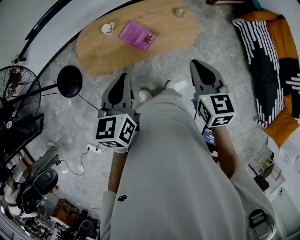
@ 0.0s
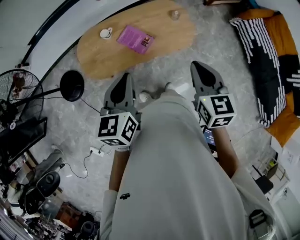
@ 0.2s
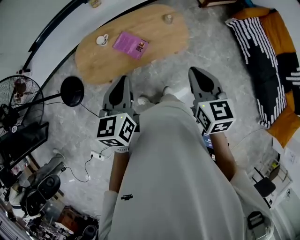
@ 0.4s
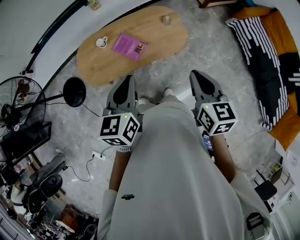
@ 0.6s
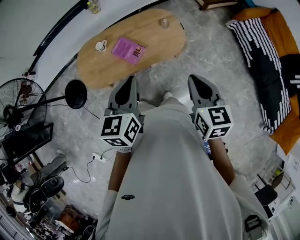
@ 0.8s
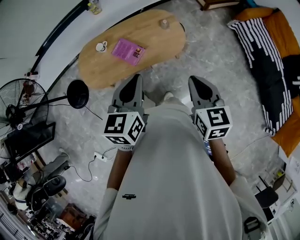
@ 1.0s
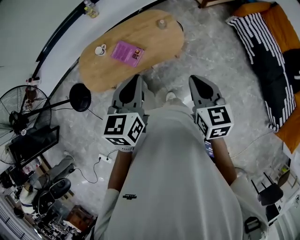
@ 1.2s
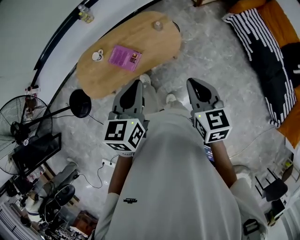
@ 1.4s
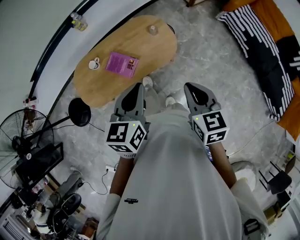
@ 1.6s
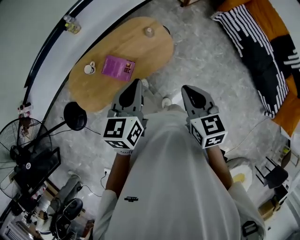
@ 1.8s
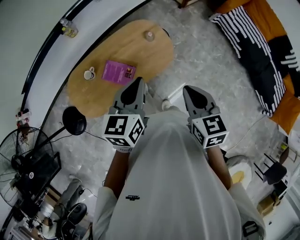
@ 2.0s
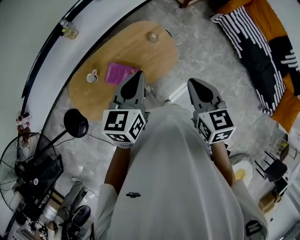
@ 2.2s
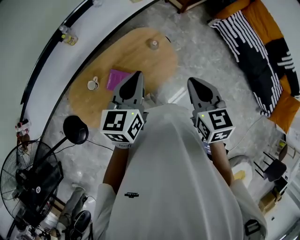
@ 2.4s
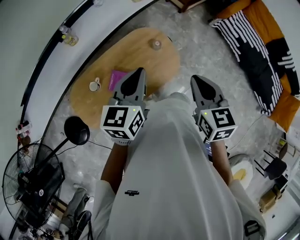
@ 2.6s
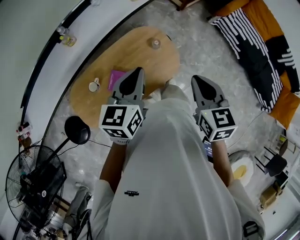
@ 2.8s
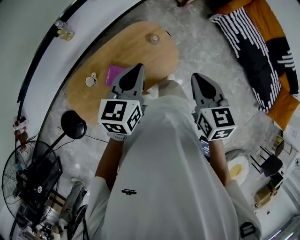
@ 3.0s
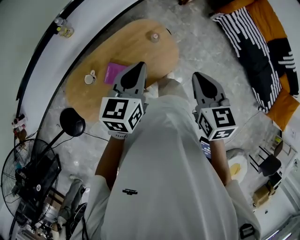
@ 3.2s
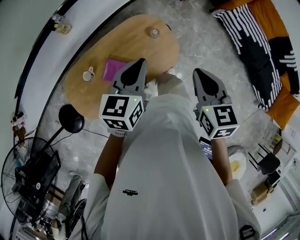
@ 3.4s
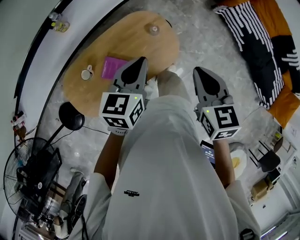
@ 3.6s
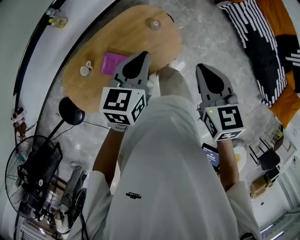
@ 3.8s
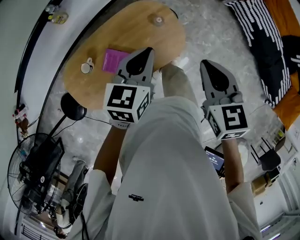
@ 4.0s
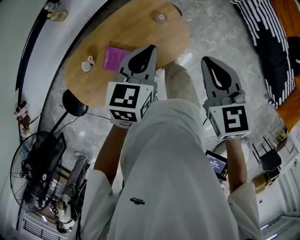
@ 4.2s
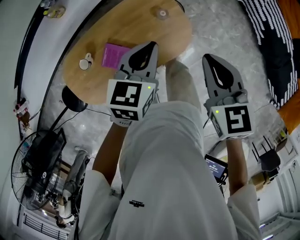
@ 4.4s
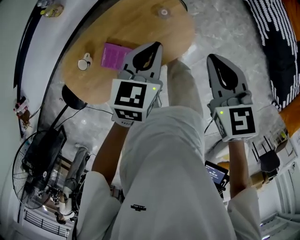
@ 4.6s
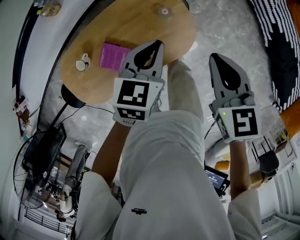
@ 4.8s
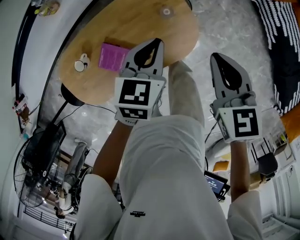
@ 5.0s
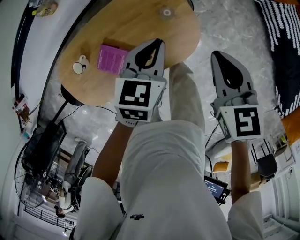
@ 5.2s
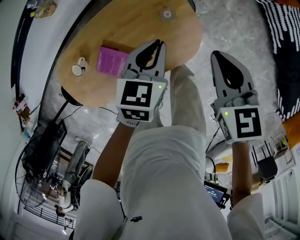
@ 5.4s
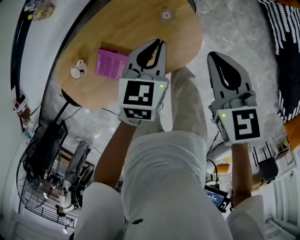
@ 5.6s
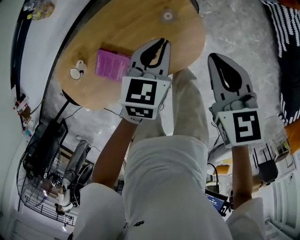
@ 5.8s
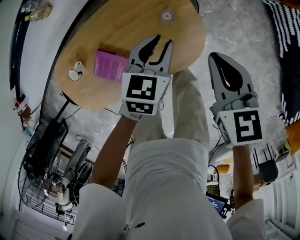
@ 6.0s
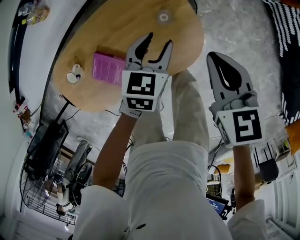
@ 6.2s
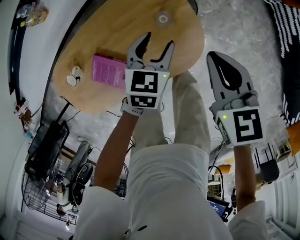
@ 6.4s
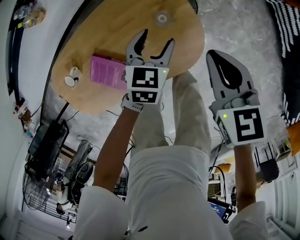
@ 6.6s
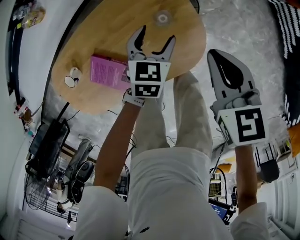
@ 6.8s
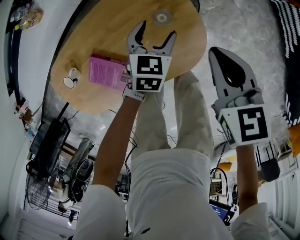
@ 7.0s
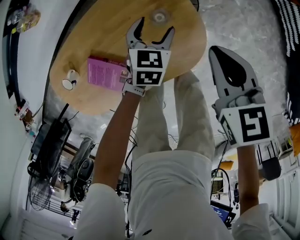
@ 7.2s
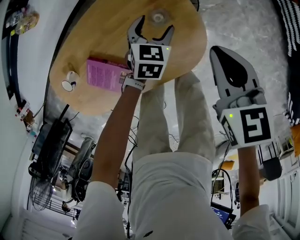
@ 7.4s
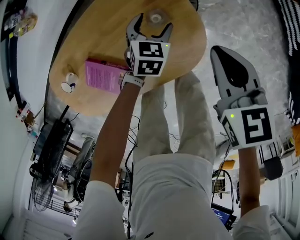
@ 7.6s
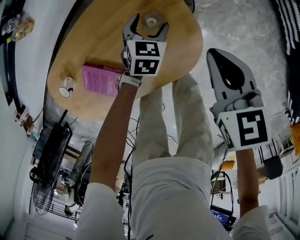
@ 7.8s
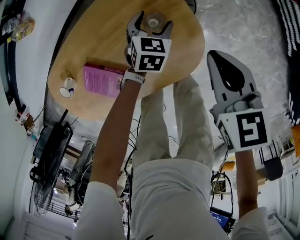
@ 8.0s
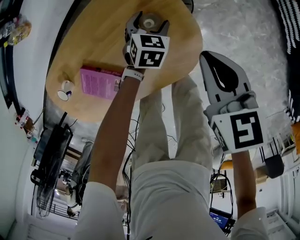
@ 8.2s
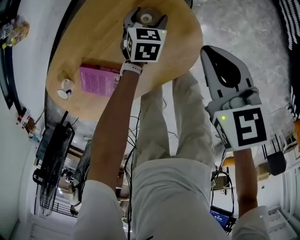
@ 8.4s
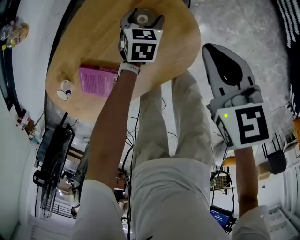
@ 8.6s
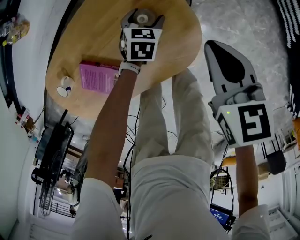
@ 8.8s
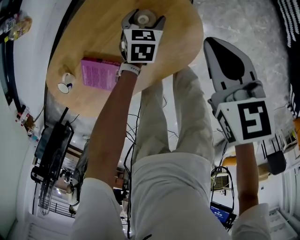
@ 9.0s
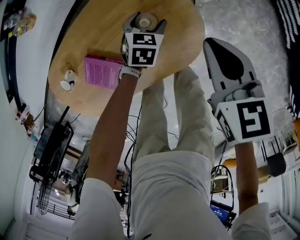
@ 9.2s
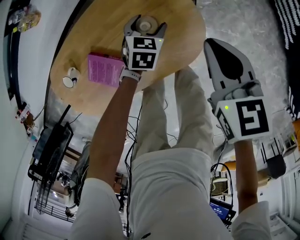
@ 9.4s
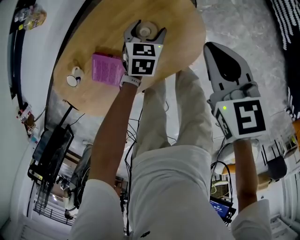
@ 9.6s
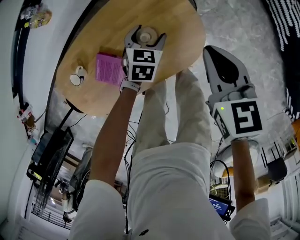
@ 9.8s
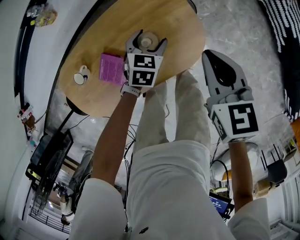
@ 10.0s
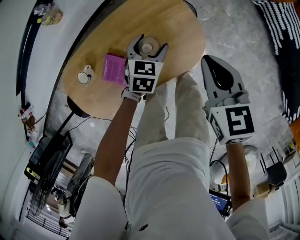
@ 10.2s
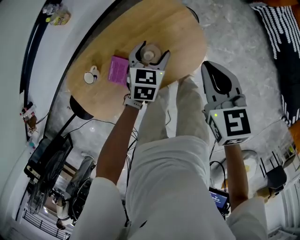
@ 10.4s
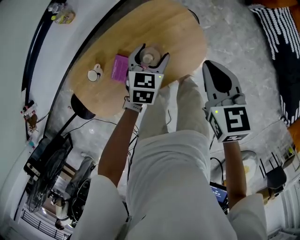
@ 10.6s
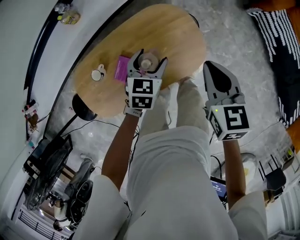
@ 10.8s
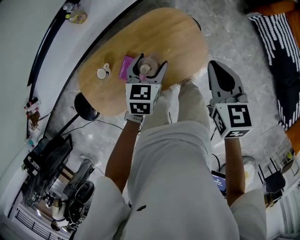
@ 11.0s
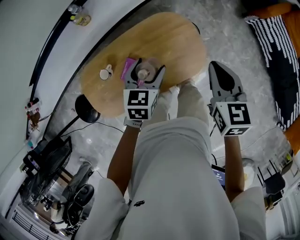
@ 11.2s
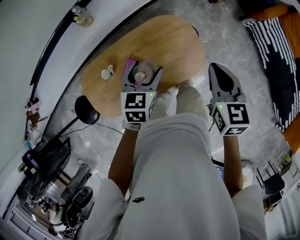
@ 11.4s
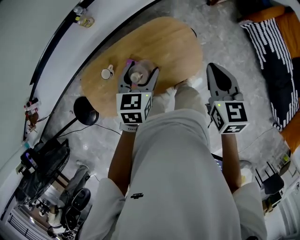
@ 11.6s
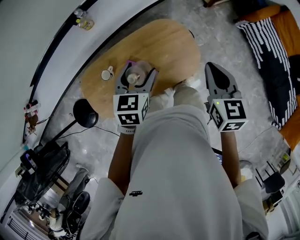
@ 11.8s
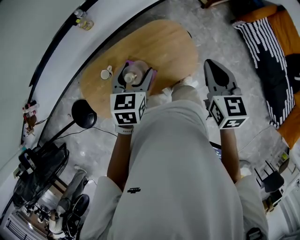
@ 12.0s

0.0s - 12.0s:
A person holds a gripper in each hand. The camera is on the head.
0.0s - 1.6s: The grippers both shift to the right by roughly 20 cm.
1.6s - 3.0s: The grippers both shift forward and to the left by some 20 cm.
3.0s - 4.4s: The right gripper travels forward and downward by roughly 10 cm. Meanwhile the left gripper moves downward, forward and to the right, some 15 cm.
4.4s - 6.0s: The right gripper travels downward and forward by roughly 20 cm, while the left gripper moves downward, approximately 20 cm.
6.0s - 7.6s: The right gripper moves downward, about 10 cm. The left gripper goes about 20 cm downward, and opens up.
7.6s - 9.0s: The grippers move only a little.
9.0s - 10.4s: The left gripper shifts about 25 cm upward and backward; the right gripper is displaced upward, backward and to the left by roughly 20 cm.
10.4s - 12.0s: The left gripper shifts approximately 25 cm upward and to the left; the right gripper travels upward by approximately 15 cm.

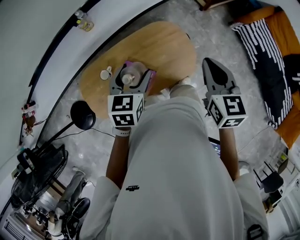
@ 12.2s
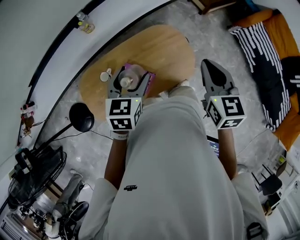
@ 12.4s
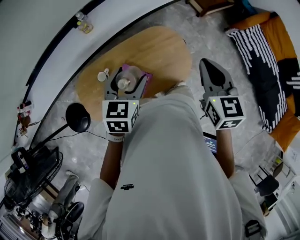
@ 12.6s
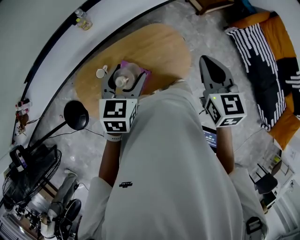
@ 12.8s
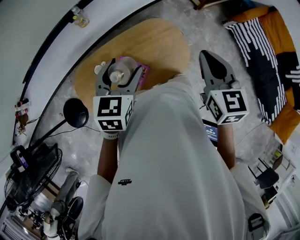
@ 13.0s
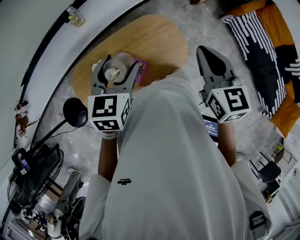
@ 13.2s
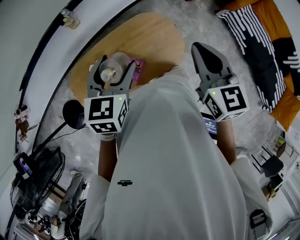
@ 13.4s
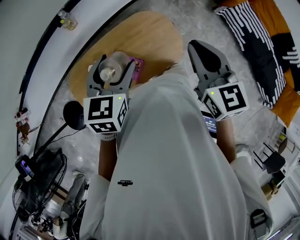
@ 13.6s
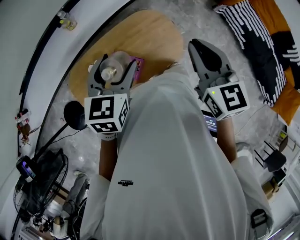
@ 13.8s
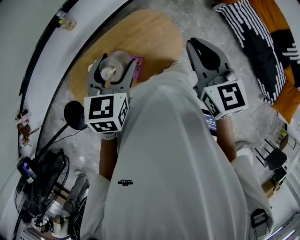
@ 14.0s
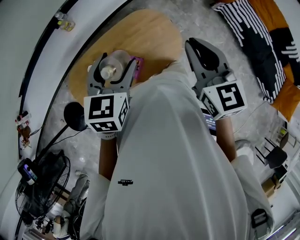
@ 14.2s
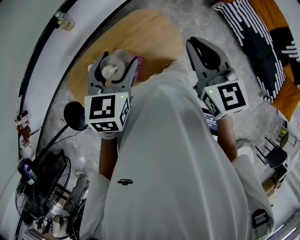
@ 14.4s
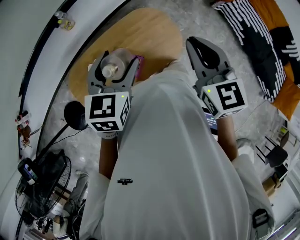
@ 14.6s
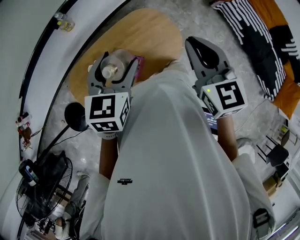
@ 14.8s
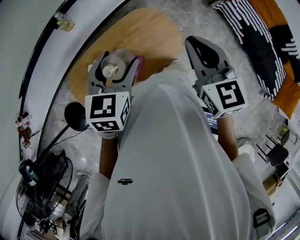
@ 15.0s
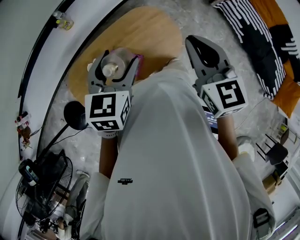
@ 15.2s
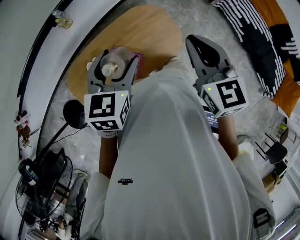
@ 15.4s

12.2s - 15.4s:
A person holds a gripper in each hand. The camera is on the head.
12.2s - 13.8s: Both grippers travel together upward, about 5 cm.
13.8s - 15.4s: The grippers make only small movements.

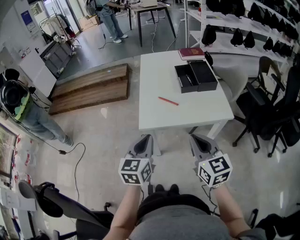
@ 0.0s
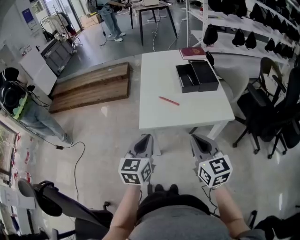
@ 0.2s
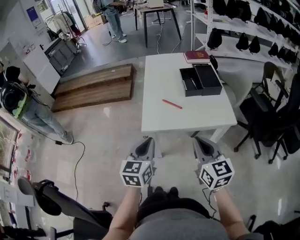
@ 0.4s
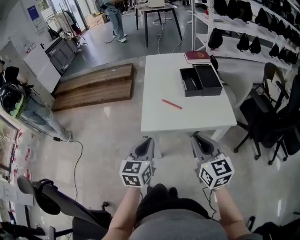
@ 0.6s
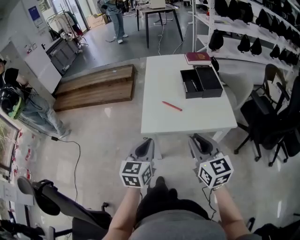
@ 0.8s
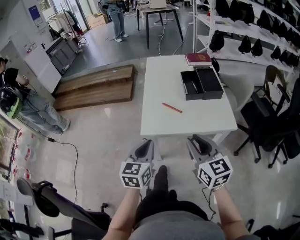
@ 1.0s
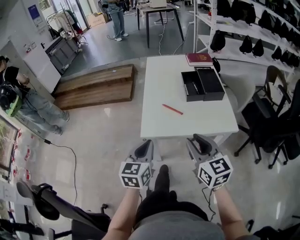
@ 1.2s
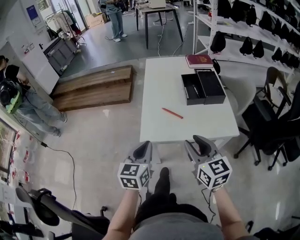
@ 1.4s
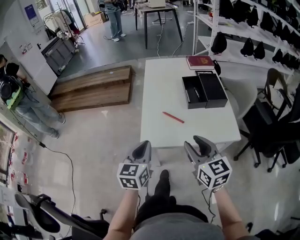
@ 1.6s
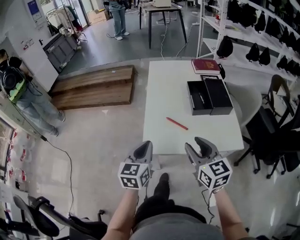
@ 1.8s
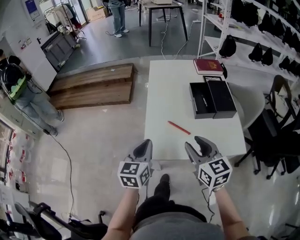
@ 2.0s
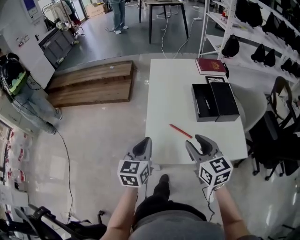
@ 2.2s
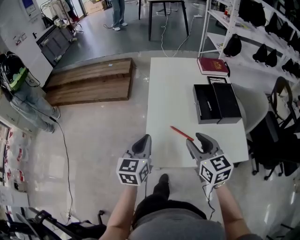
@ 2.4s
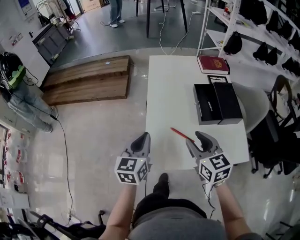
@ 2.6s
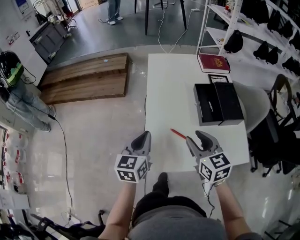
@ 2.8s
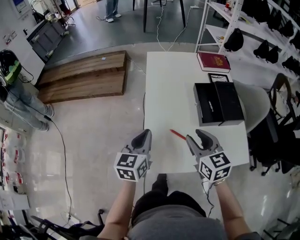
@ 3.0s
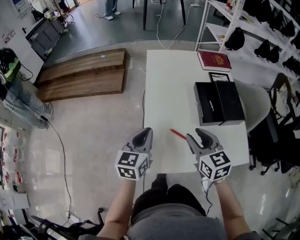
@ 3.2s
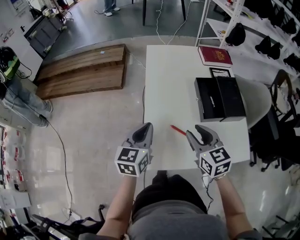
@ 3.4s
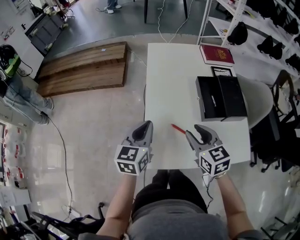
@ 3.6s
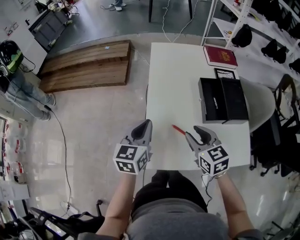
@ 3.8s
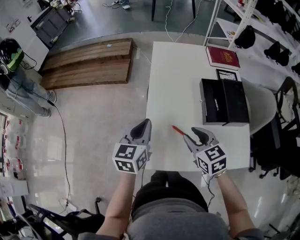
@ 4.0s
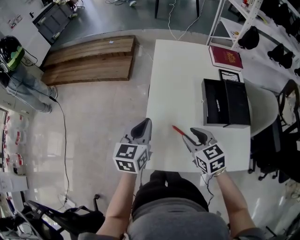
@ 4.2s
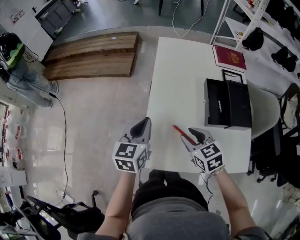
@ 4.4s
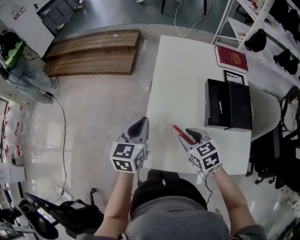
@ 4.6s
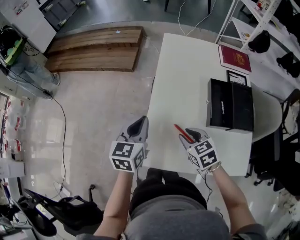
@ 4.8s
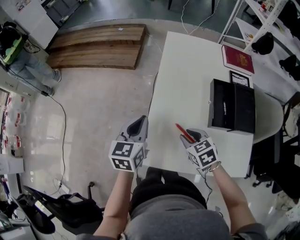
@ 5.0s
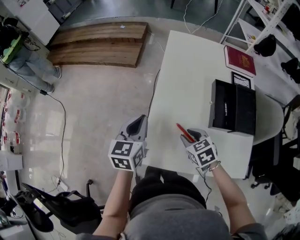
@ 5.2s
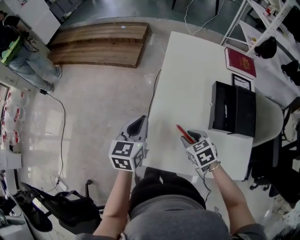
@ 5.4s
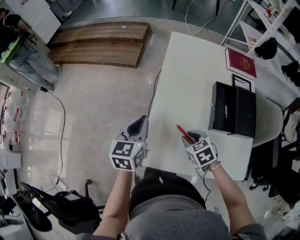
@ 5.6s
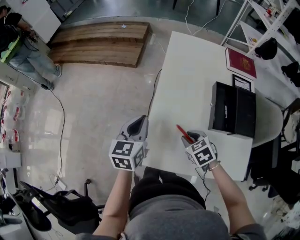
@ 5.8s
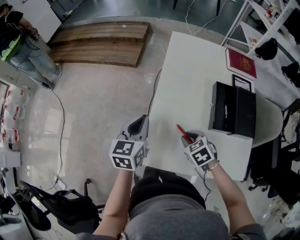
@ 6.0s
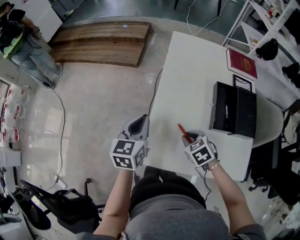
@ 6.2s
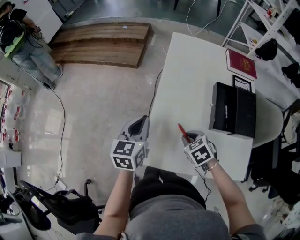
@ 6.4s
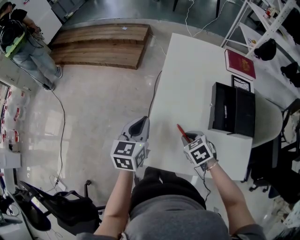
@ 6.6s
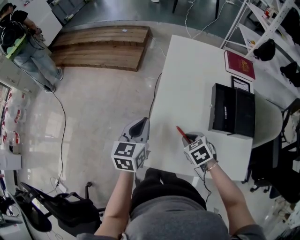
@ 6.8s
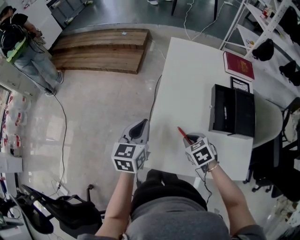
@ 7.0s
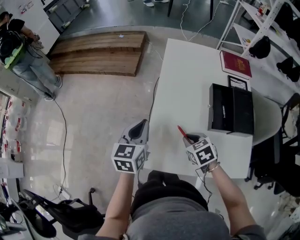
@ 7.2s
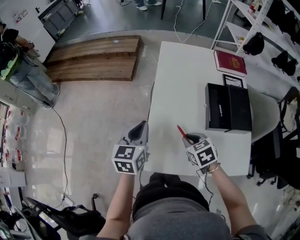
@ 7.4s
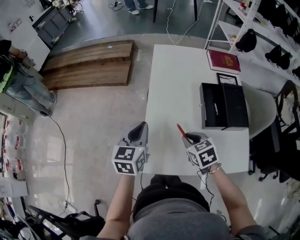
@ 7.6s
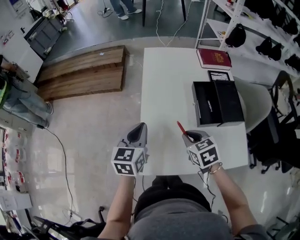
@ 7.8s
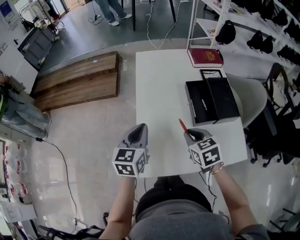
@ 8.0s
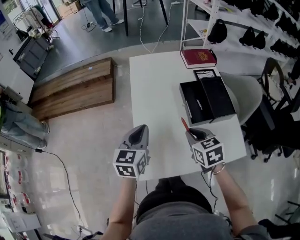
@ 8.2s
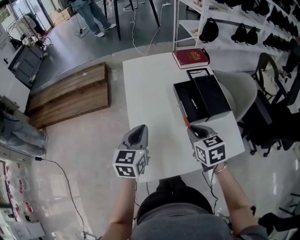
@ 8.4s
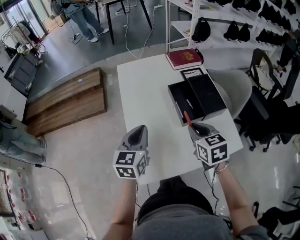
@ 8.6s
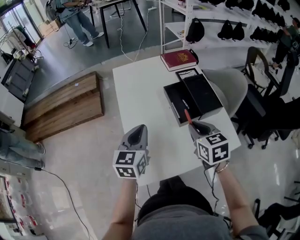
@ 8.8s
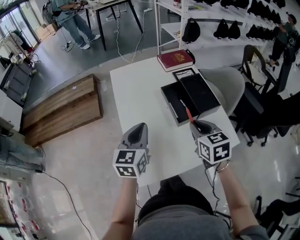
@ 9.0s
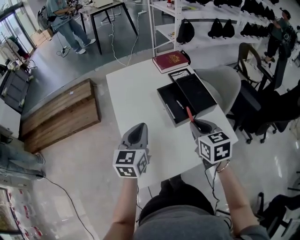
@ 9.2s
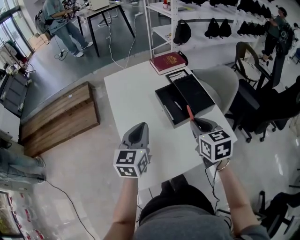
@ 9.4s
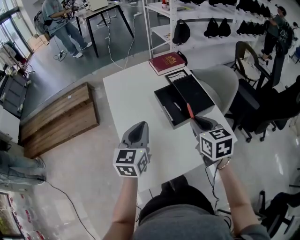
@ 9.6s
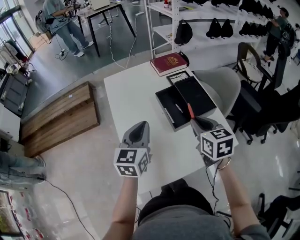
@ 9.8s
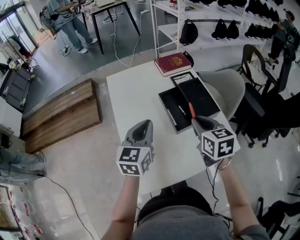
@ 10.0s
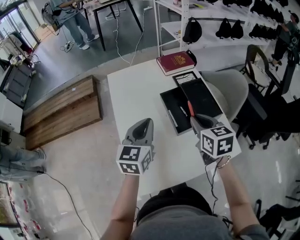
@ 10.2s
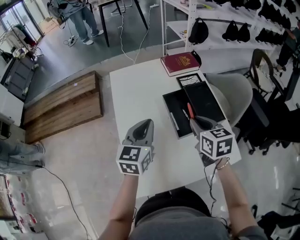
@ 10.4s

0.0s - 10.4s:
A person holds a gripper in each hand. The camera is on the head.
0.0s - 1.4s: Both grippers travel together forward, roughly 5 cm. The right gripper opens its fingers.
1.4s - 3.0s: Both grippers travel together forward, some 25 cm.
3.0s - 4.4s: The right gripper heads downward, covering some 10 cm, and rotates some 20 degrees.
4.4s - 6.0s: The right gripper shifts about 10 cm downward, and changes its angle by about 20 degrees.
6.0s - 7.4s: There are only small adjustments of the grippers.
7.4s - 9.0s: The right gripper is displaced upward by about 15 cm, and rotates roughly 40 degrees. The left gripper ends up some 15 cm from where it was, and swivels about 30 degrees.
9.0s - 10.4s: Both grippers travel together forward, approximately 10 cm.
